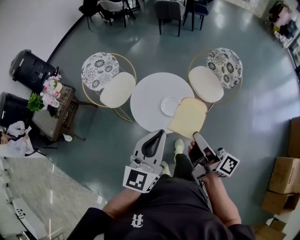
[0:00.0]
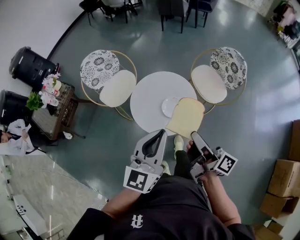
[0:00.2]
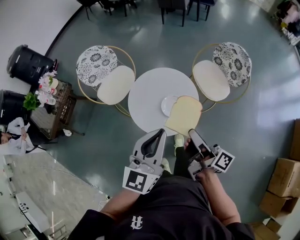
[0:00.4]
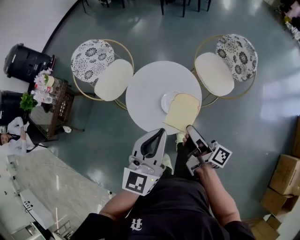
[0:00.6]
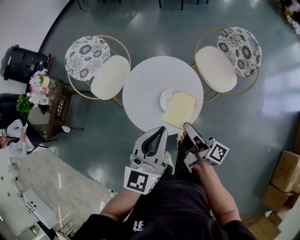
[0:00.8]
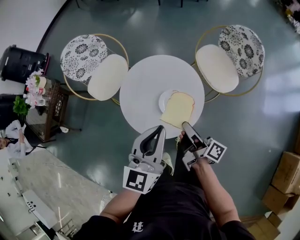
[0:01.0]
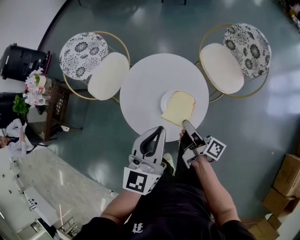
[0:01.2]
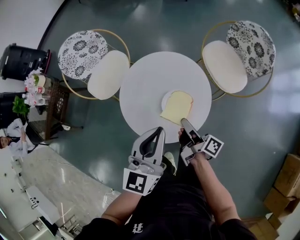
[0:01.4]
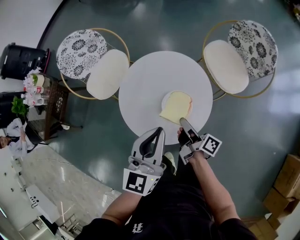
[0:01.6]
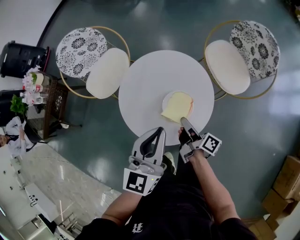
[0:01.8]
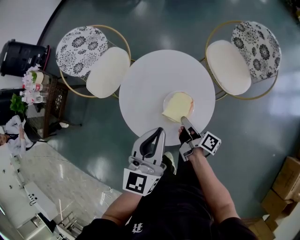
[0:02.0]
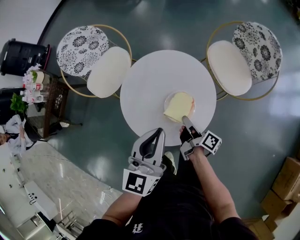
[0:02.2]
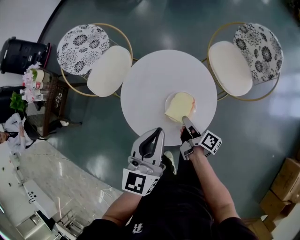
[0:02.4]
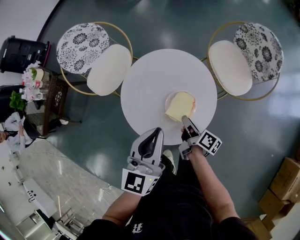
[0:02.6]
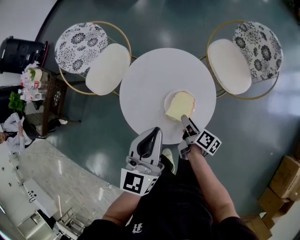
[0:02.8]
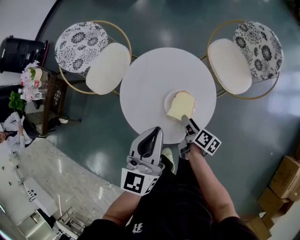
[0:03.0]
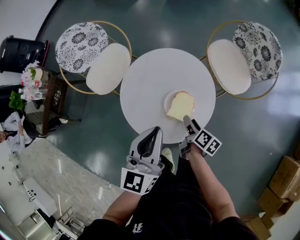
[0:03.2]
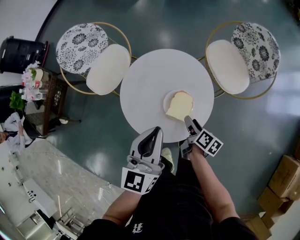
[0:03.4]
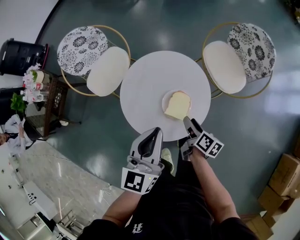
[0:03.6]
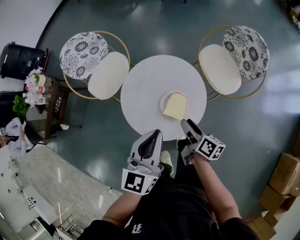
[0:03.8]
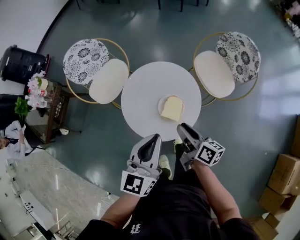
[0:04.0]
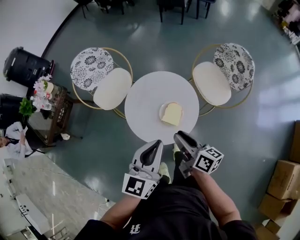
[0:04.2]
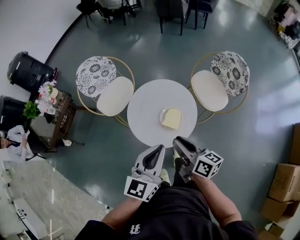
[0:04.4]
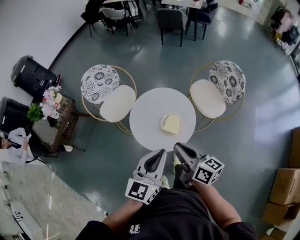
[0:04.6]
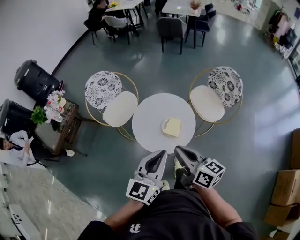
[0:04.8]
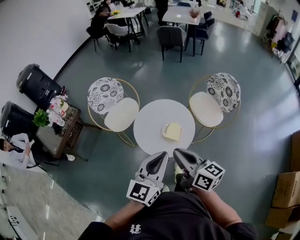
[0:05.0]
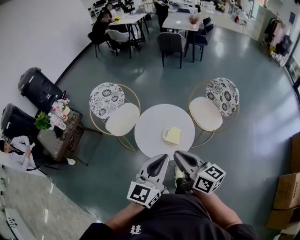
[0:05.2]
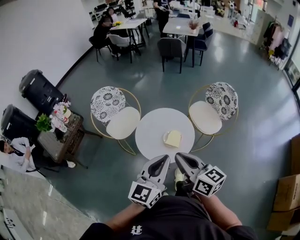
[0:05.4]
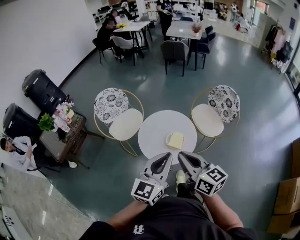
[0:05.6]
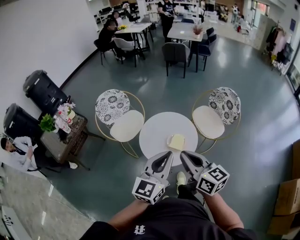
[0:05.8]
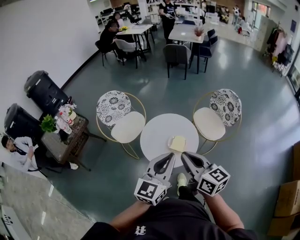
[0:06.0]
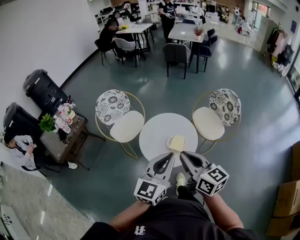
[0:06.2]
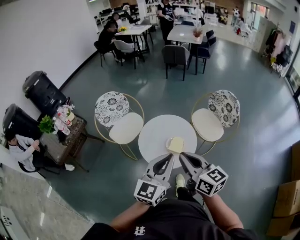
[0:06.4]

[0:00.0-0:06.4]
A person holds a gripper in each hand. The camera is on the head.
0:00.0 to 0:01.6: Both grippers move downward and forward, roughly 35 cm. The right gripper swivels about 20 degrees.
0:01.6 to 0:03.2: The right gripper travels downward by roughly 5 cm, points its fingers roughly 30 degrees further downward, and opens its fingers.
0:03.2 to 0:04.8: The left gripper travels upward and backward by some 25 cm, while the right gripper travels upward by roughly 40 cm, tips its fingers upward by approximately 30 degrees, and closes.
0:04.8 to 0:06.4: The right gripper moves upward, approximately 5 cm.

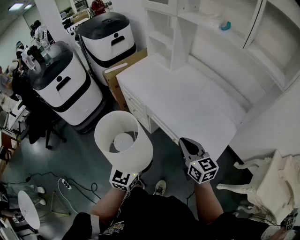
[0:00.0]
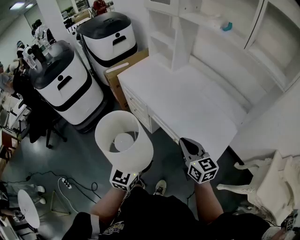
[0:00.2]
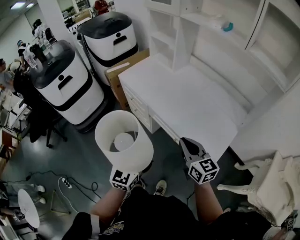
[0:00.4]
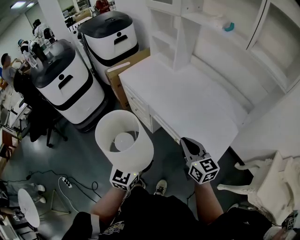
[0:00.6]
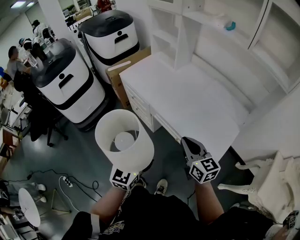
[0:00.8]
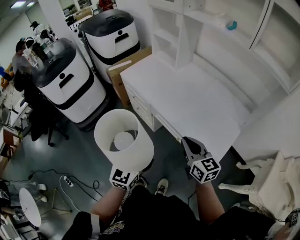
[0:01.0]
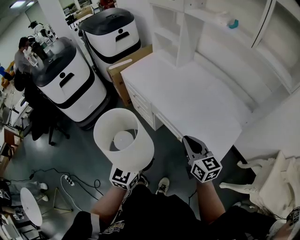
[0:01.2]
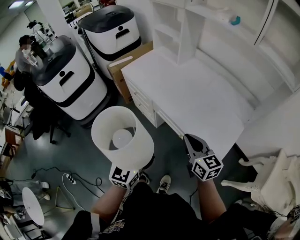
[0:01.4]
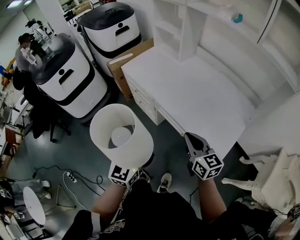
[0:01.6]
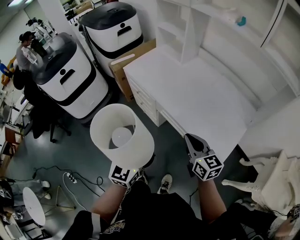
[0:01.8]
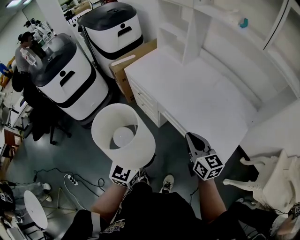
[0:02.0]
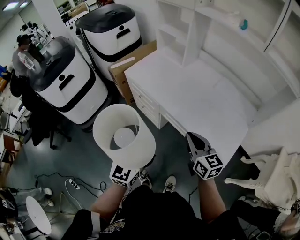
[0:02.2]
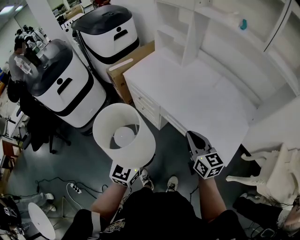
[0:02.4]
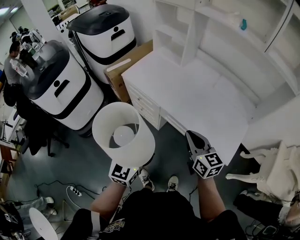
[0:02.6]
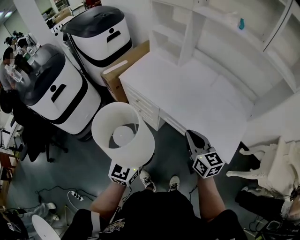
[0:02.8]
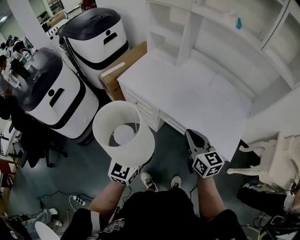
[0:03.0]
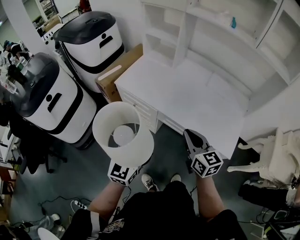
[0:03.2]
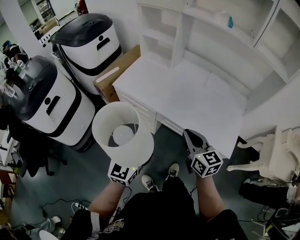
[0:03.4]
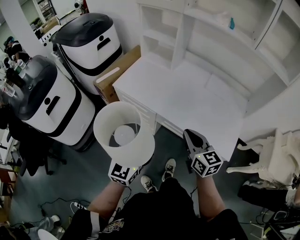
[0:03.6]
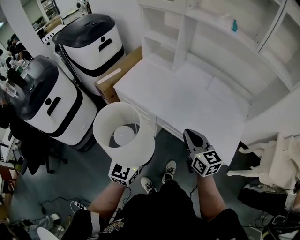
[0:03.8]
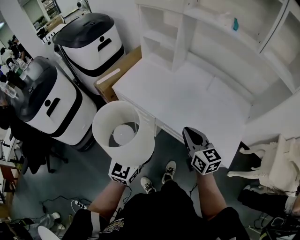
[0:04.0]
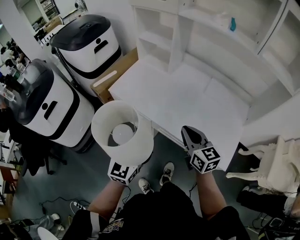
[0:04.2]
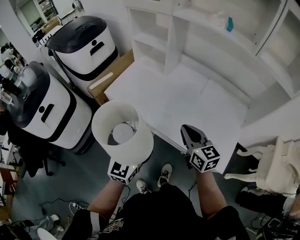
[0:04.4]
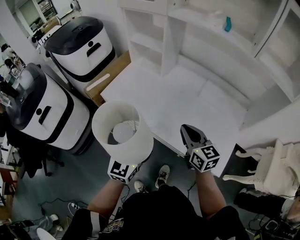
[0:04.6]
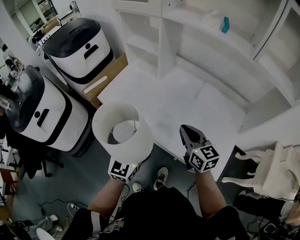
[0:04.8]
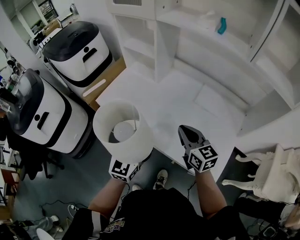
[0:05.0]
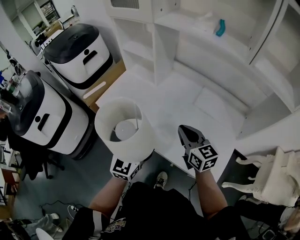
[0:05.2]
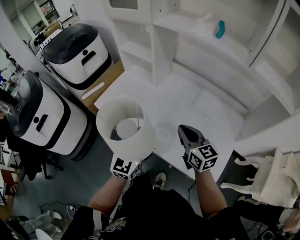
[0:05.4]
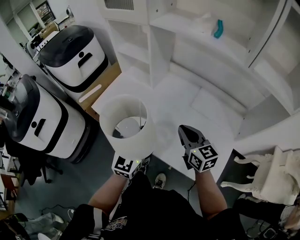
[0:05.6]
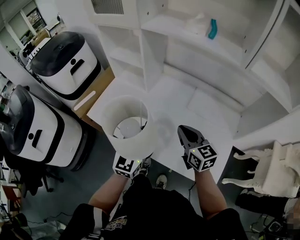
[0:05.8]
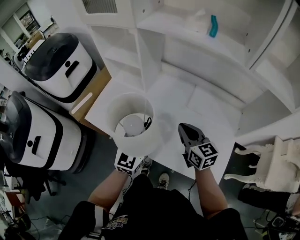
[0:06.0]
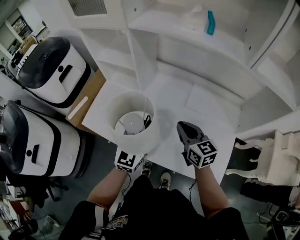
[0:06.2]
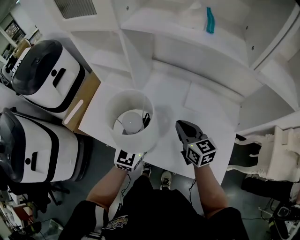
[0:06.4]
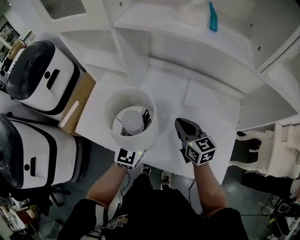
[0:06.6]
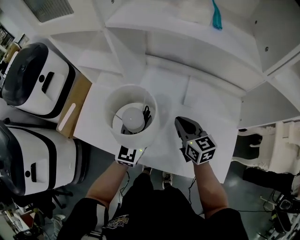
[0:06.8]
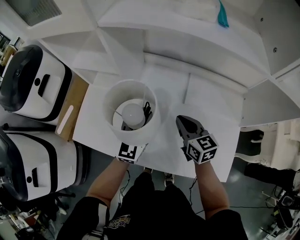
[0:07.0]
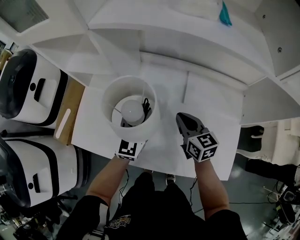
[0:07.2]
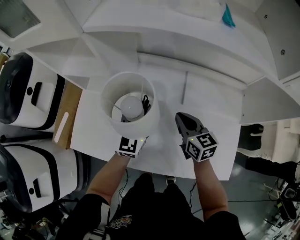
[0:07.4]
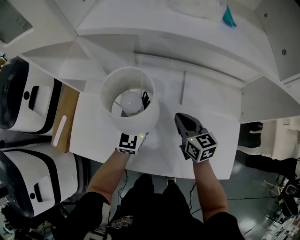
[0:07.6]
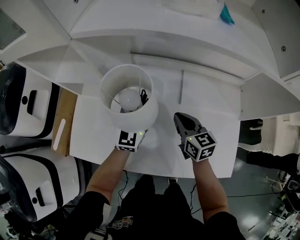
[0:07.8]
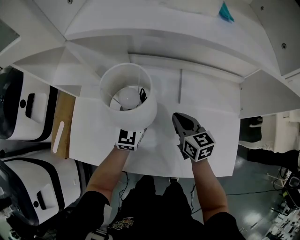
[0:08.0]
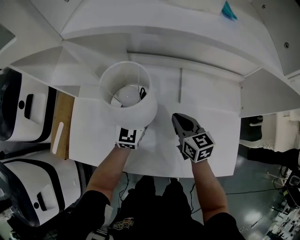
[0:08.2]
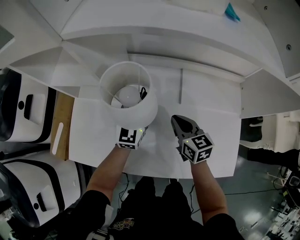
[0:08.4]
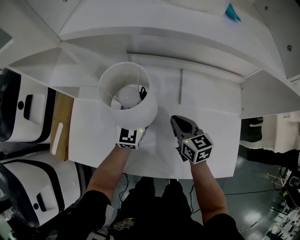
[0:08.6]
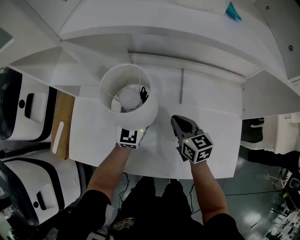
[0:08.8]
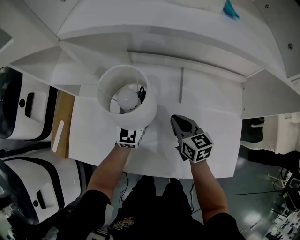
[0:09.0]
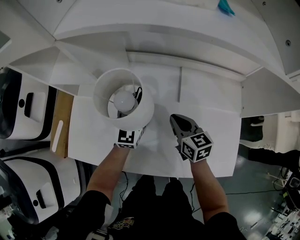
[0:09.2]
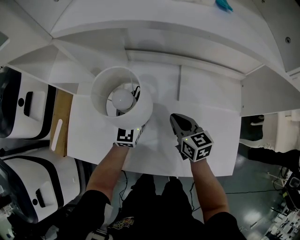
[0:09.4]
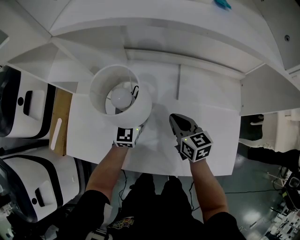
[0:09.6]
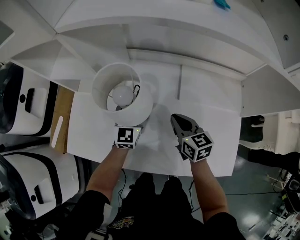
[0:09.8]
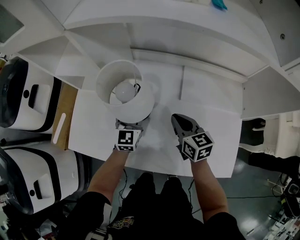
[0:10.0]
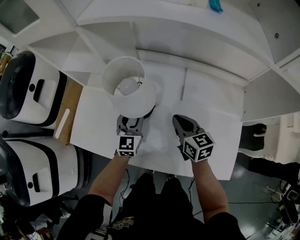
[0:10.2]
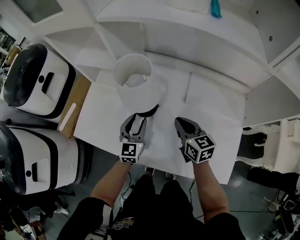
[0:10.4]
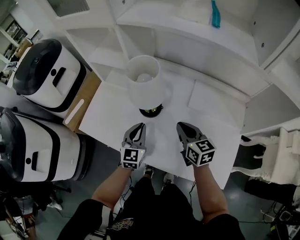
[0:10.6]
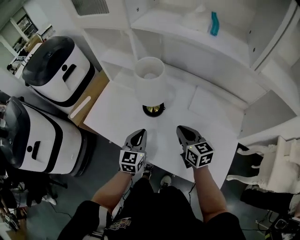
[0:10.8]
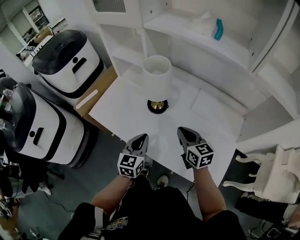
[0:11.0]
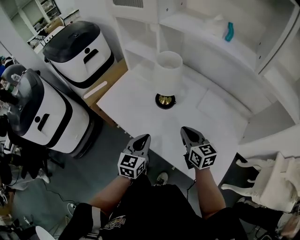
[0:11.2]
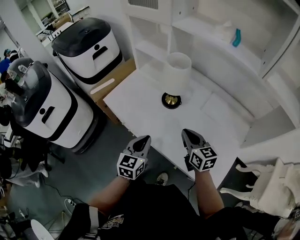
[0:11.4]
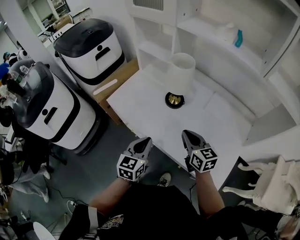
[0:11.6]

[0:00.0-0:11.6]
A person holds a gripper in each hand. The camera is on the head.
0:00.0 to 0:01.4: The grippers make only small movements.
0:01.4 to 0:02.8: The grippers both shift to the left and forward by about 15 cm.
0:02.8 to 0:04.4: The left gripper shifts approximately 10 cm forward and to the right. Meanwhile the right gripper goes about 10 cm forward.
0:04.4 to 0:05.8: Both grippers travel together forward and to the right, some 15 cm.
0:05.8 to 0:07.2: The right gripper moves forward and downward, about 15 cm; the left gripper goes some 20 cm forward.
0:07.2 to 0:08.8: The left gripper shifts some 10 cm forward.
0:08.8 to 0:10.2: The left gripper travels backward by about 10 cm.
0:10.2 to 0:11.6: The left gripper heads backward, covering about 30 cm, turns by some 20 degrees, and closes its fingers. The right gripper travels backward, upward and to the left by approximately 20 cm, and turns by about 20 degrees.

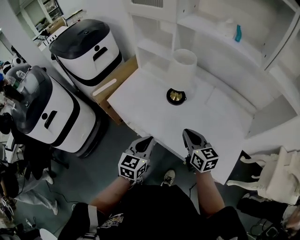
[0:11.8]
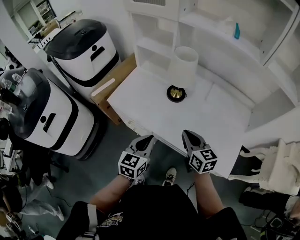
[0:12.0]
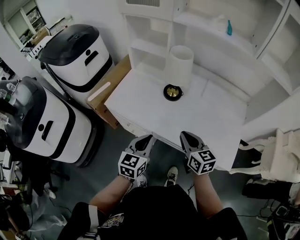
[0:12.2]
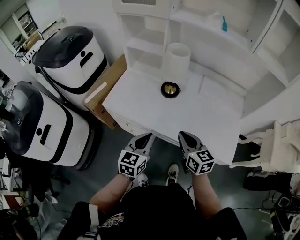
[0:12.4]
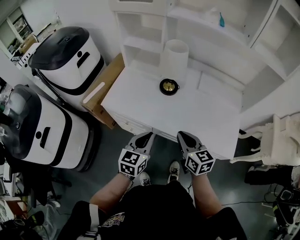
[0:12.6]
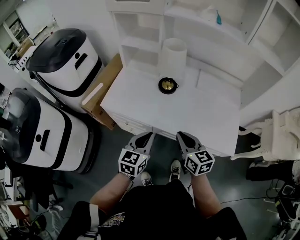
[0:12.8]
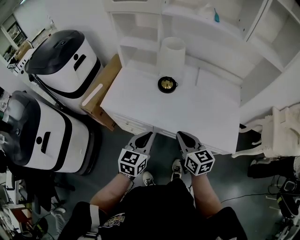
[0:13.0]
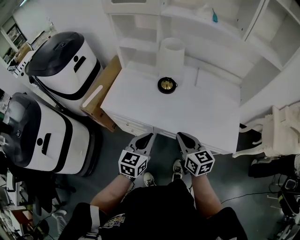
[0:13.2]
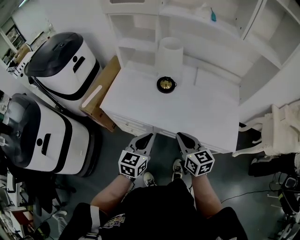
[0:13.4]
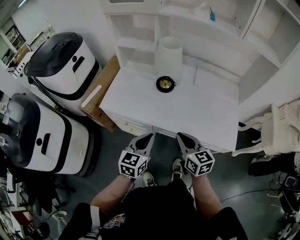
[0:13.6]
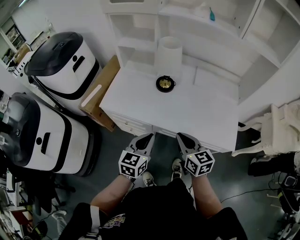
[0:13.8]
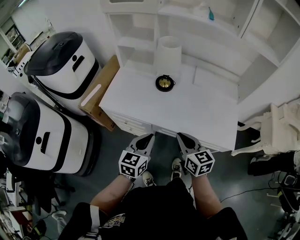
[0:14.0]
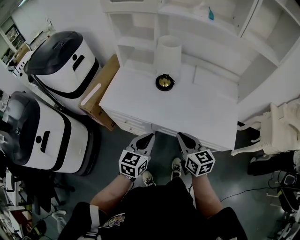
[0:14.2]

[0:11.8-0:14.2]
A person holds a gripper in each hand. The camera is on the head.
0:11.8 to 0:13.0: The left gripper moves to the left, about 5 cm. The right gripper shifts about 10 cm backward and to the left.
0:13.0 to 0:14.2: The grippers make only small movements.

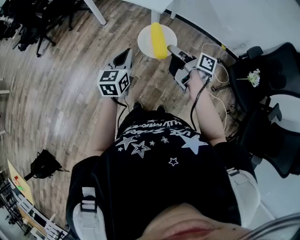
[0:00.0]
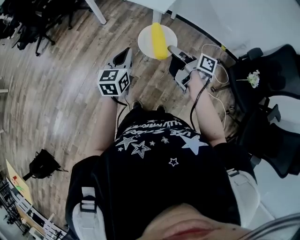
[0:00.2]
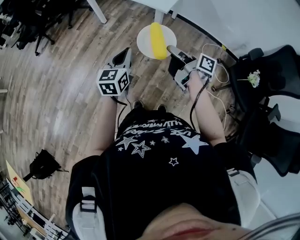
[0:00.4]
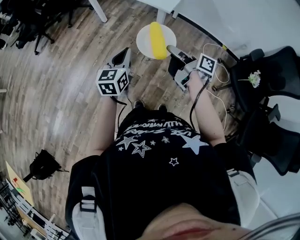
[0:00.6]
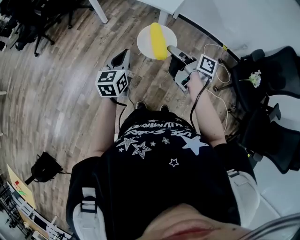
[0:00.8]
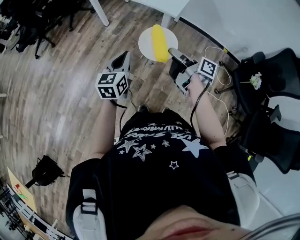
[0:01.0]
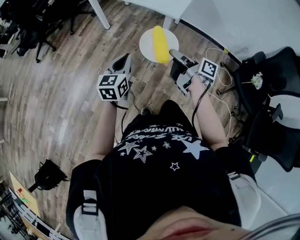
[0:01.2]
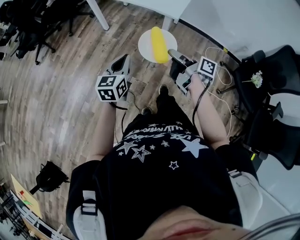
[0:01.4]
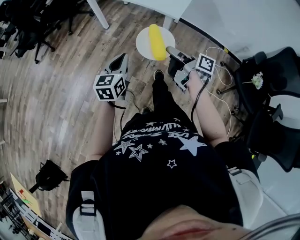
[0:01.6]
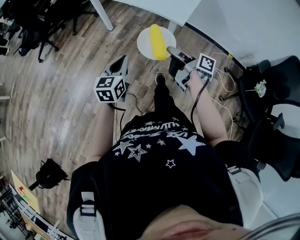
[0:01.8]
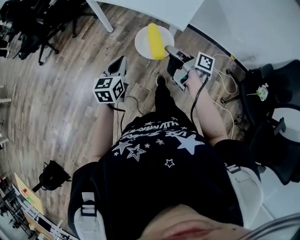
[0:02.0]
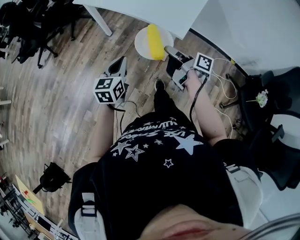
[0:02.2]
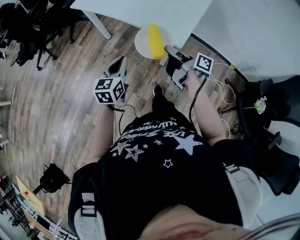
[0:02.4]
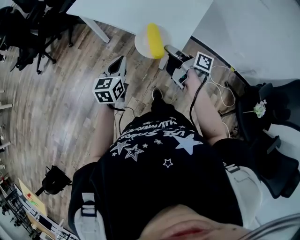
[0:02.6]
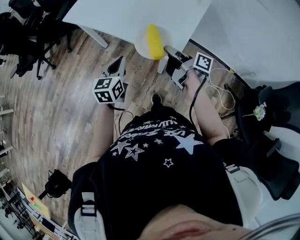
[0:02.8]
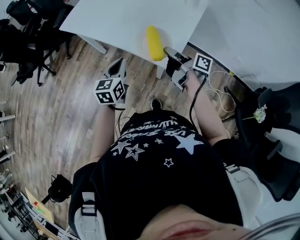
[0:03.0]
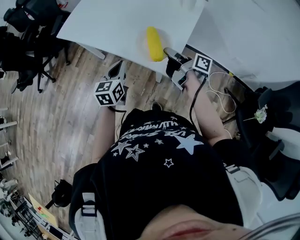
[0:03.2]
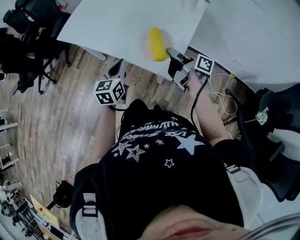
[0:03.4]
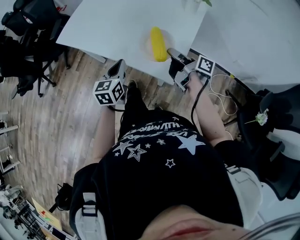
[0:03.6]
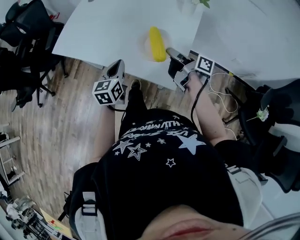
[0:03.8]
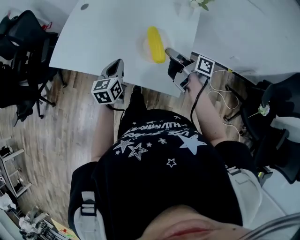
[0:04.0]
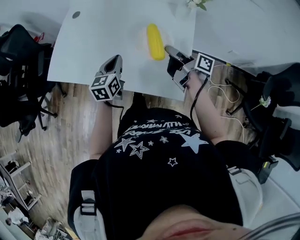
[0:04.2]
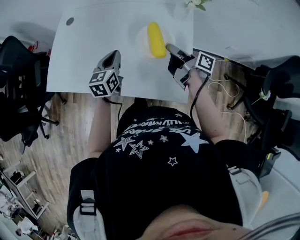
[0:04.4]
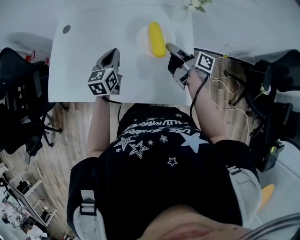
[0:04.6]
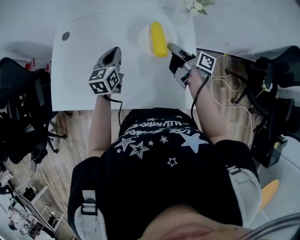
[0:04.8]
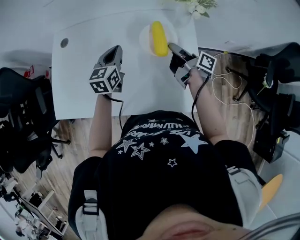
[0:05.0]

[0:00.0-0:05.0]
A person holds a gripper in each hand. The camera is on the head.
0:00.0 to 0:01.6: The left gripper ends up about 15 cm from where it was.
0:01.6 to 0:03.4: The left gripper shifts by some 40 cm.
0:03.4 to 0:05.0: The left gripper ends up about 40 cm from where it was, and rotates approximately 30 degrees.
